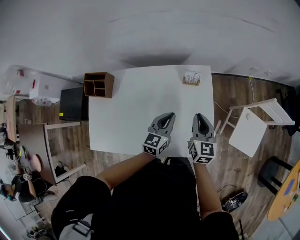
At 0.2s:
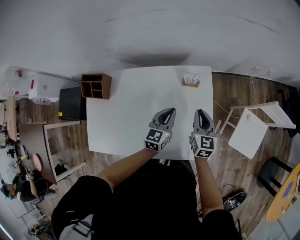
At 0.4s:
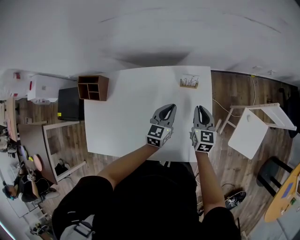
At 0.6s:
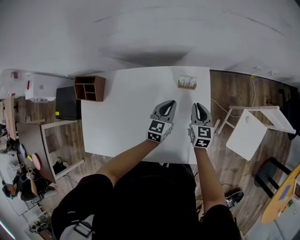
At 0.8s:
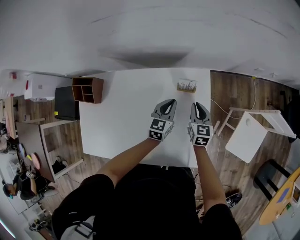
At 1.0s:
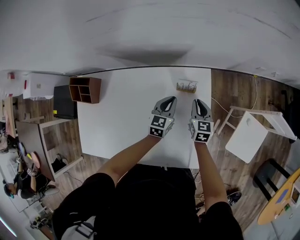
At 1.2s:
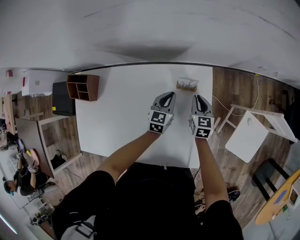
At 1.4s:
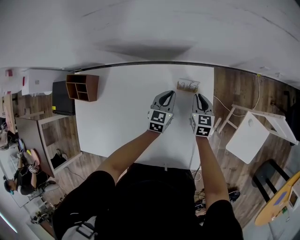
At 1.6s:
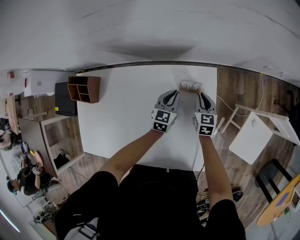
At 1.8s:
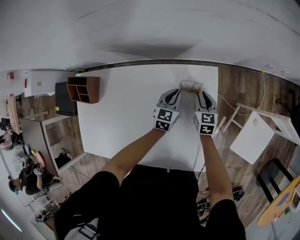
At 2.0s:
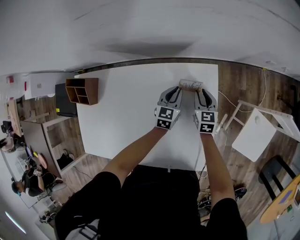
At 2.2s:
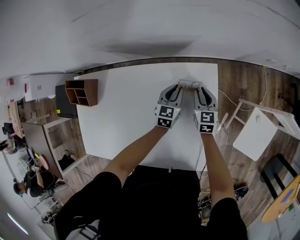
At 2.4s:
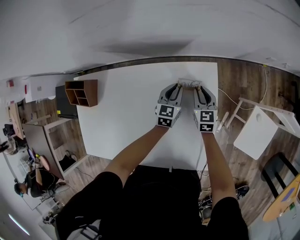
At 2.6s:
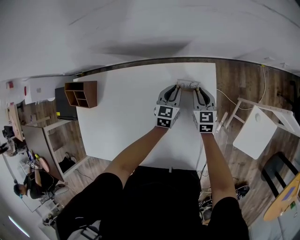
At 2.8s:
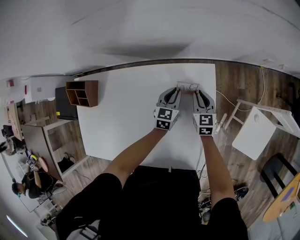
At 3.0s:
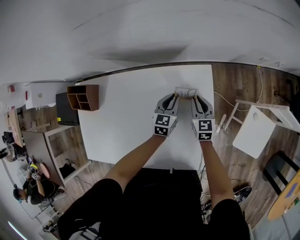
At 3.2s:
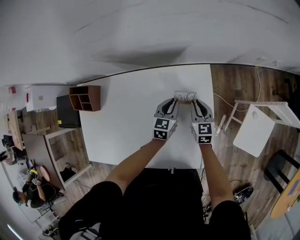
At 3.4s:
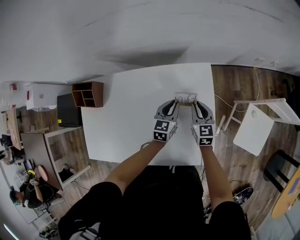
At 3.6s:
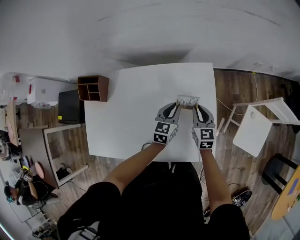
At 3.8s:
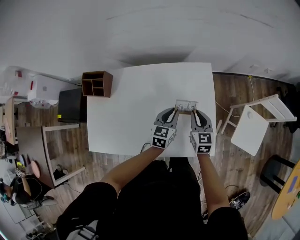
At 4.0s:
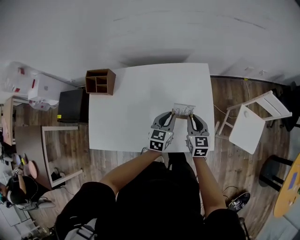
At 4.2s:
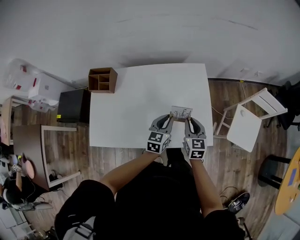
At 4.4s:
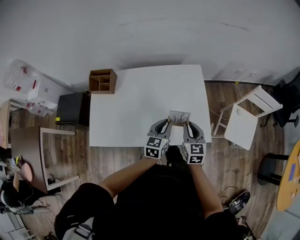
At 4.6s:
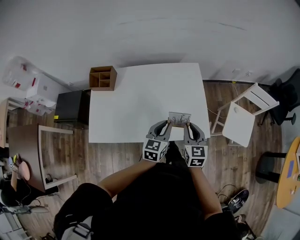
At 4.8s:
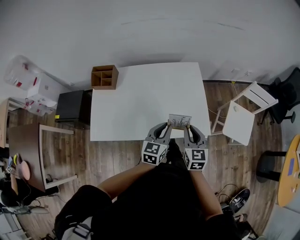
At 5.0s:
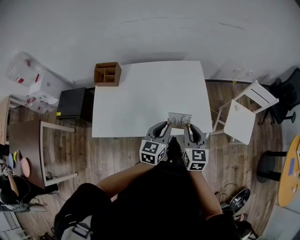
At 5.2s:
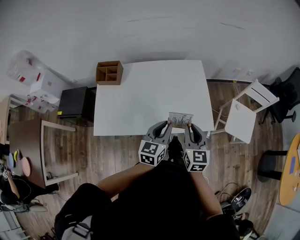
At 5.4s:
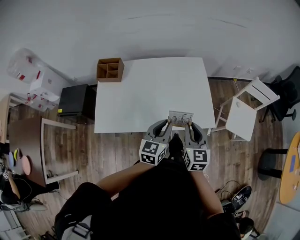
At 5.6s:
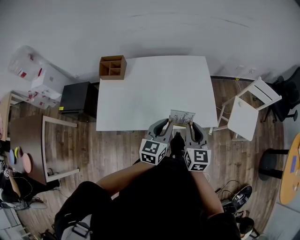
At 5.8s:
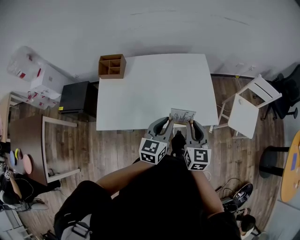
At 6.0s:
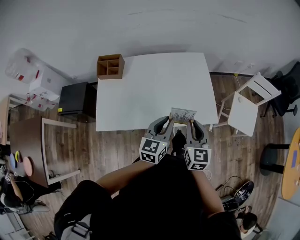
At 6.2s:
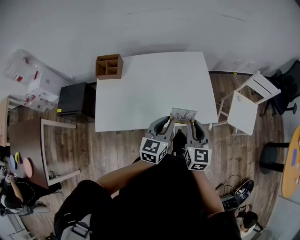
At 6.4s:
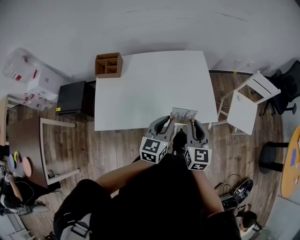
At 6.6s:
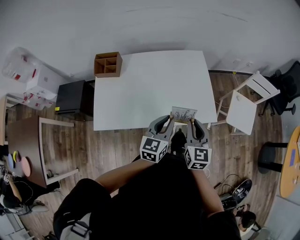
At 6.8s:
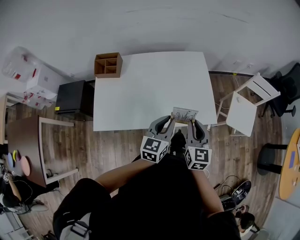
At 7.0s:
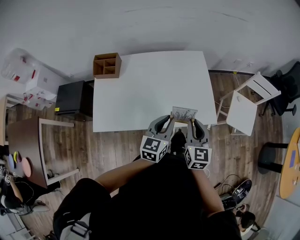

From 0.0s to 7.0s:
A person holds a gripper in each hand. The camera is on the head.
From 0.0s to 1.4s: The right gripper moves downward and forward, some 25 cm. The left gripper moves forward and downward, roughly 25 cm.
From 1.4s to 2.8s: The grippers stay close to where they were, moving slightly.
From 2.8s to 4.2s: Both grippers travel together backward and upward, some 35 cm.
From 4.2s to 5.6s: The two grippers go about 20 cm backward and upward.
From 5.6s to 7.0s: The grippers make only small movements.

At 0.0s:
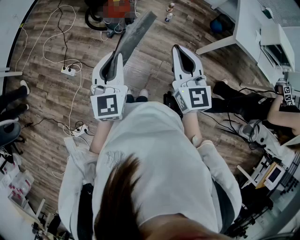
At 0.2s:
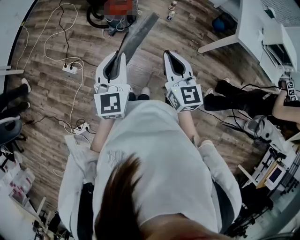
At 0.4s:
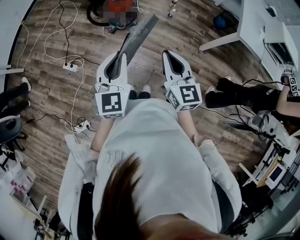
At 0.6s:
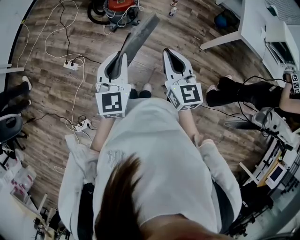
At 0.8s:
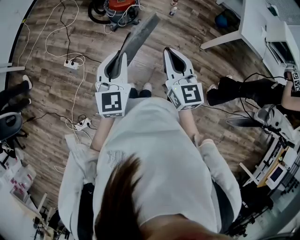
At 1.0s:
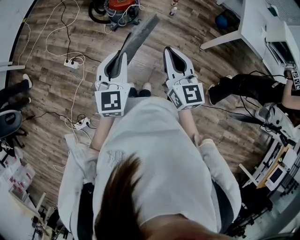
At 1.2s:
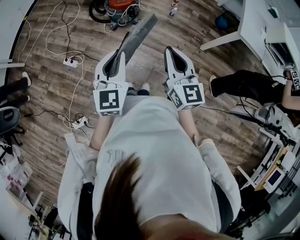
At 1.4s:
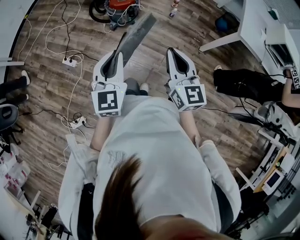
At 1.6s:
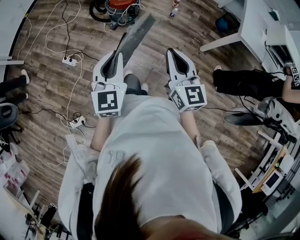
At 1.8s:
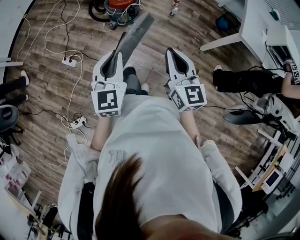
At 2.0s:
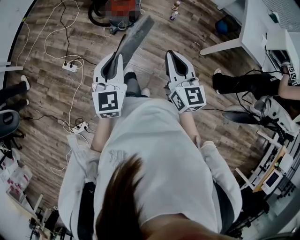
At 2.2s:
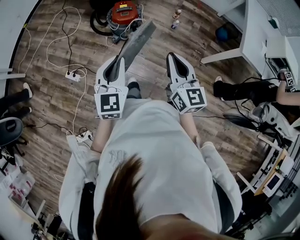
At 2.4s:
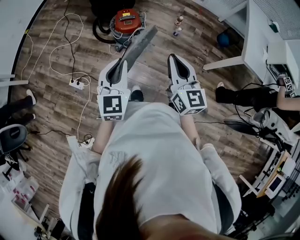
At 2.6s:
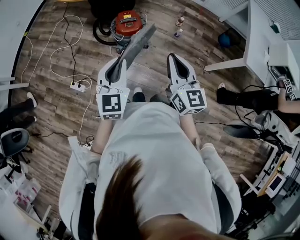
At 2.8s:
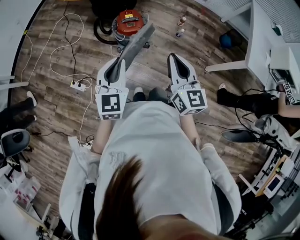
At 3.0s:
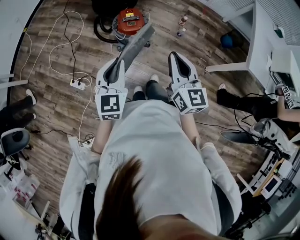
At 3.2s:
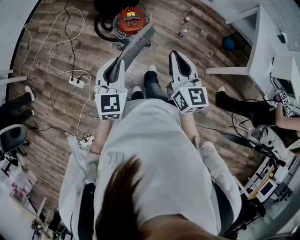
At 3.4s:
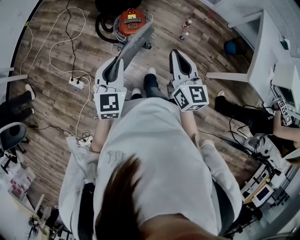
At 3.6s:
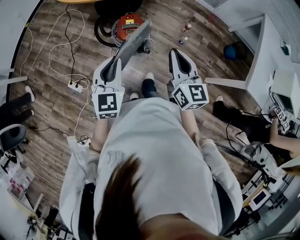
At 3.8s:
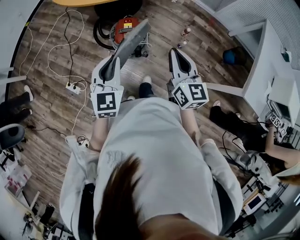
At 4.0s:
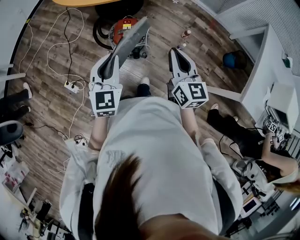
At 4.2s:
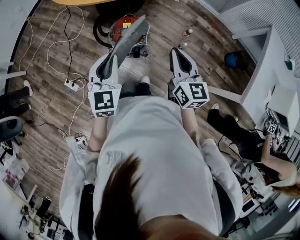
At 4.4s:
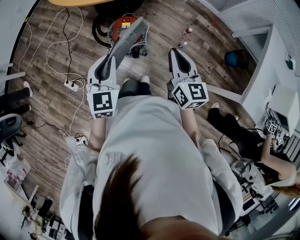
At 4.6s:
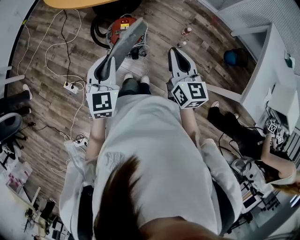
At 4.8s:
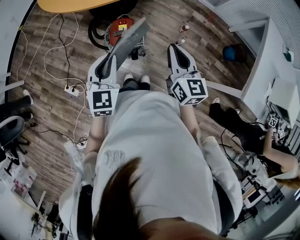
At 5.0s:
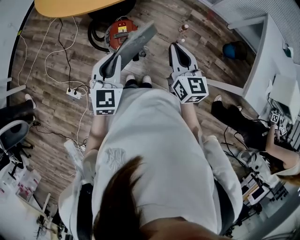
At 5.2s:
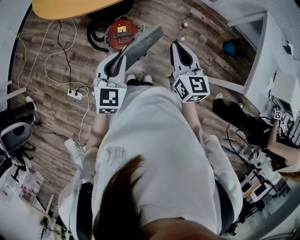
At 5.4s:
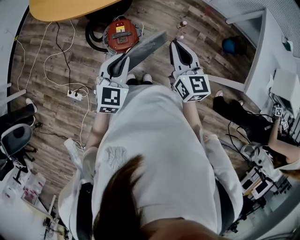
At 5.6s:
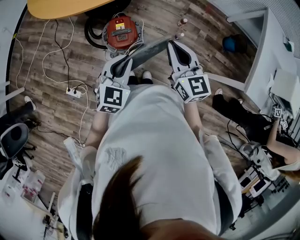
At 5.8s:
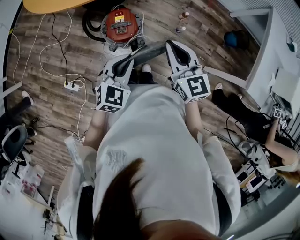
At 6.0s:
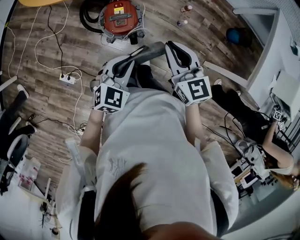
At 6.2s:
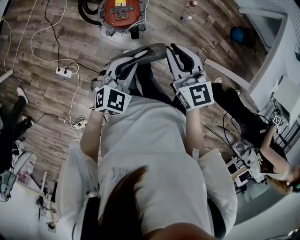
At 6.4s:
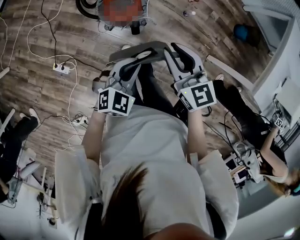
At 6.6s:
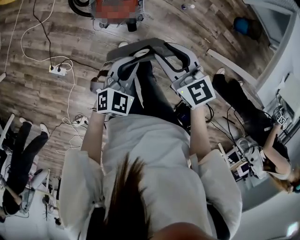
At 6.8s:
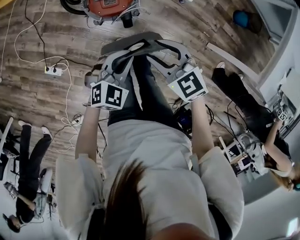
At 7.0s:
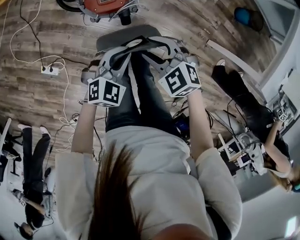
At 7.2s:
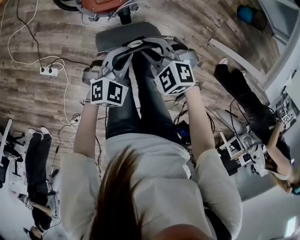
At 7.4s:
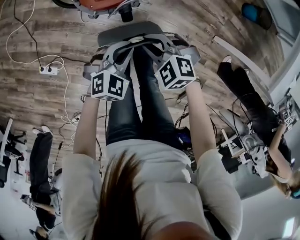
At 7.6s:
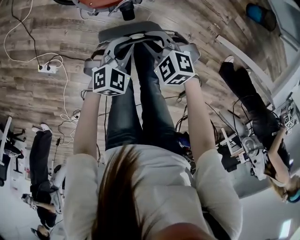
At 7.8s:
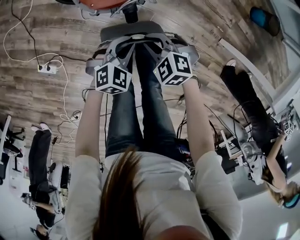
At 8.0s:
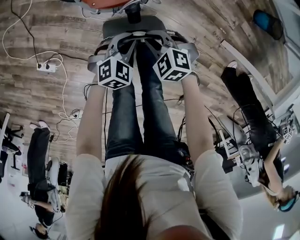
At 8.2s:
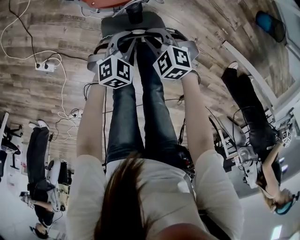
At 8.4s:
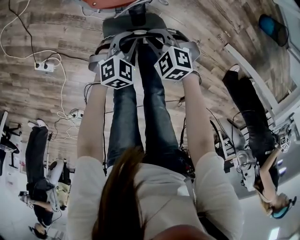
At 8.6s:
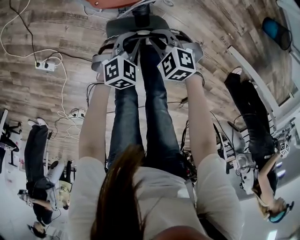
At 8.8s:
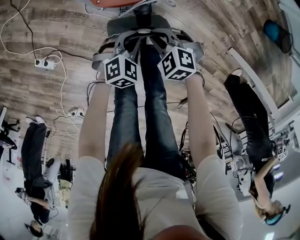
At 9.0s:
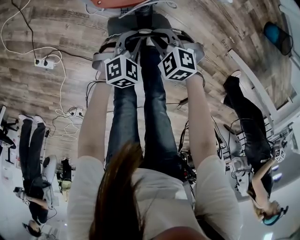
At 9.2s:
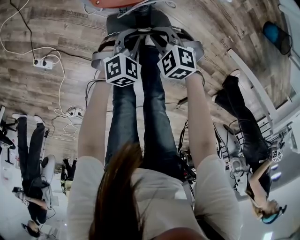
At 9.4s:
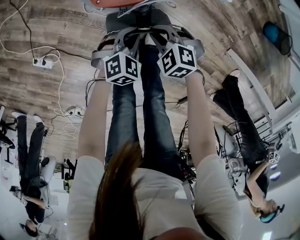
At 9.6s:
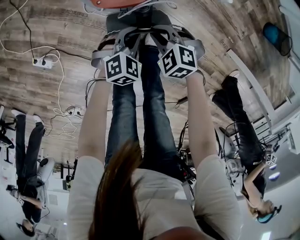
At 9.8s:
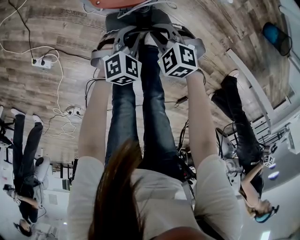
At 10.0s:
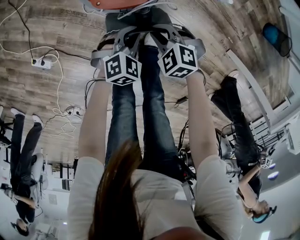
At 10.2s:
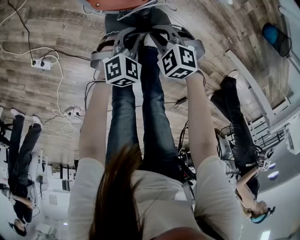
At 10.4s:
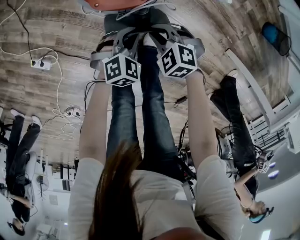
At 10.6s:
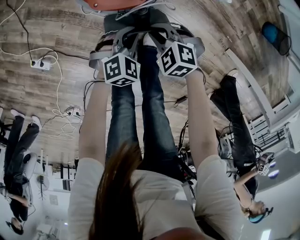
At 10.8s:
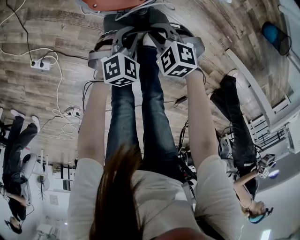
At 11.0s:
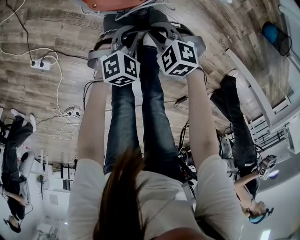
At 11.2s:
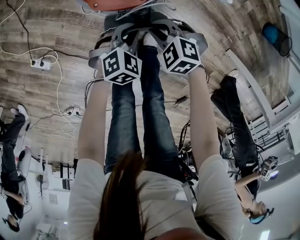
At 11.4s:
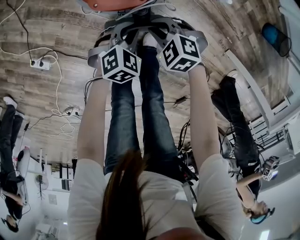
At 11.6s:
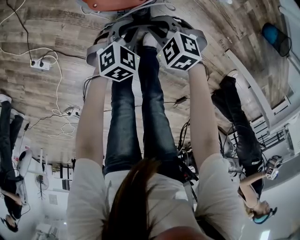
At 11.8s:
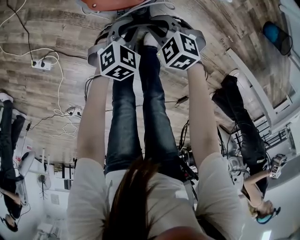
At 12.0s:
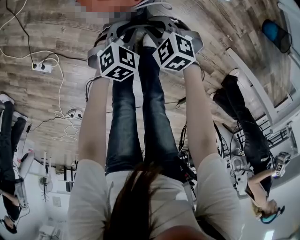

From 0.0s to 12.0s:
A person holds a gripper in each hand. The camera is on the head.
From 0.0s to 1.6s: The right gripper moves downward, approximately 5 cm. Meanwhile the left gripper ends up about 5 cm from where it was.
From 1.6s to 3.0s: Both grippers move forward, roughly 25 cm.
From 3.0s to 4.4s: The right gripper heads forward and to the right, covering about 25 cm, while the left gripper travels forward by about 20 cm.
From 4.4s to 6.0s: The left gripper shifts some 10 cm downward and to the right, and turns by roughly 40 degrees. Meanwhile the right gripper changes place by roughly 5 cm.
From 6.0s to 7.6s: The grippers both shift downward by approximately 35 cm. The right gripper tilts its fingers some 40 degrees downward, and opens, then closes once more.
From 7.6s to 9.0s: The two grippers go roughly 15 cm downward.
From 9.0s to 12.0s: The grippers stay close to where they were, moving slightly.

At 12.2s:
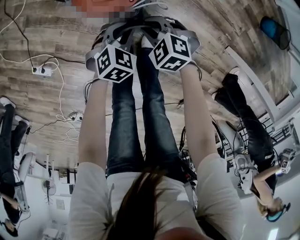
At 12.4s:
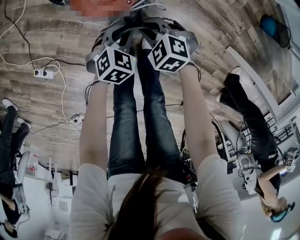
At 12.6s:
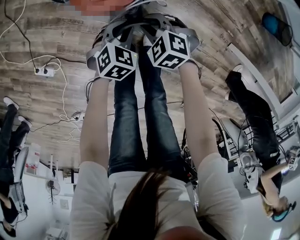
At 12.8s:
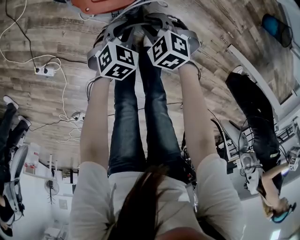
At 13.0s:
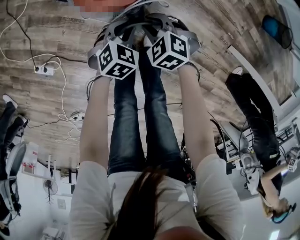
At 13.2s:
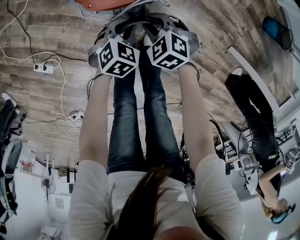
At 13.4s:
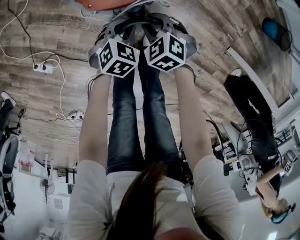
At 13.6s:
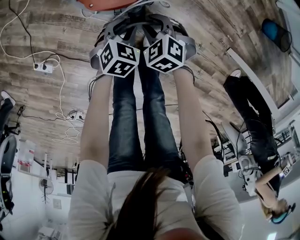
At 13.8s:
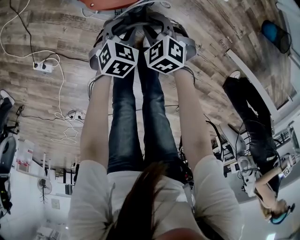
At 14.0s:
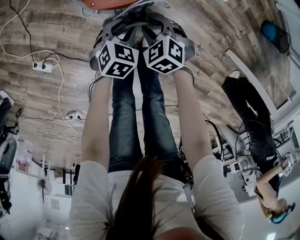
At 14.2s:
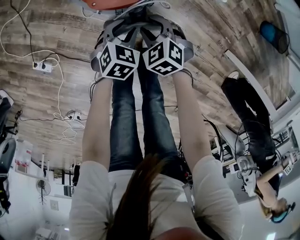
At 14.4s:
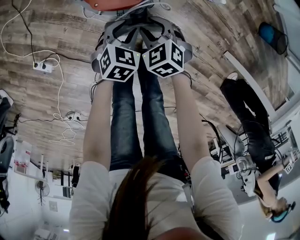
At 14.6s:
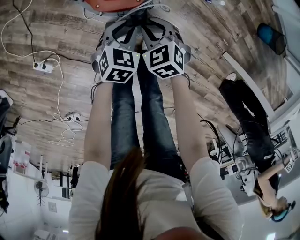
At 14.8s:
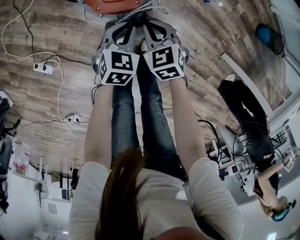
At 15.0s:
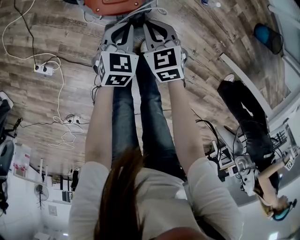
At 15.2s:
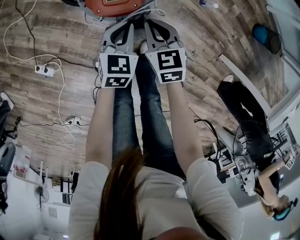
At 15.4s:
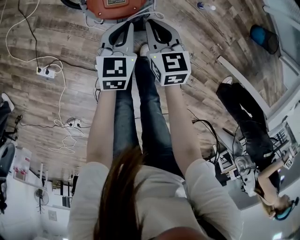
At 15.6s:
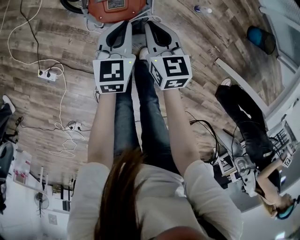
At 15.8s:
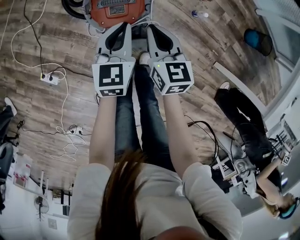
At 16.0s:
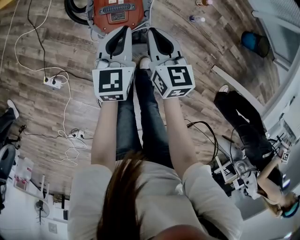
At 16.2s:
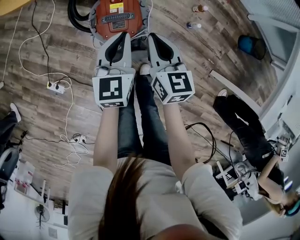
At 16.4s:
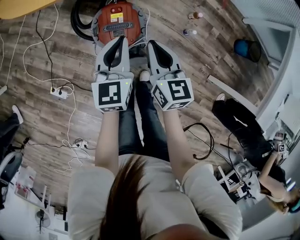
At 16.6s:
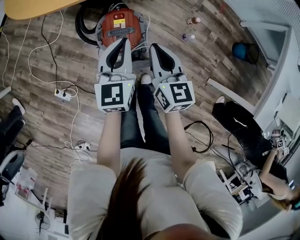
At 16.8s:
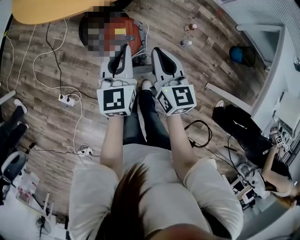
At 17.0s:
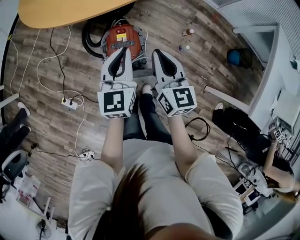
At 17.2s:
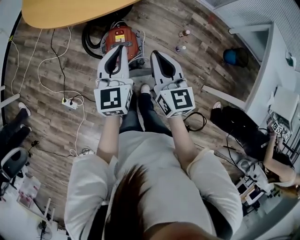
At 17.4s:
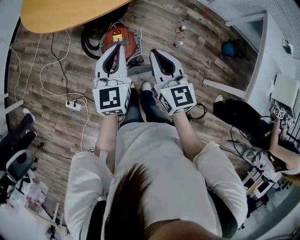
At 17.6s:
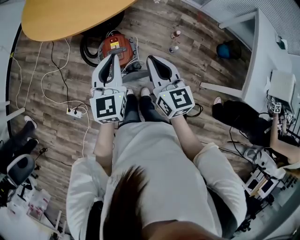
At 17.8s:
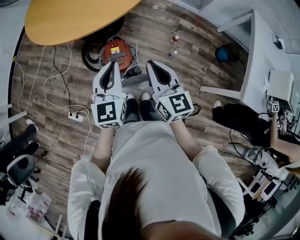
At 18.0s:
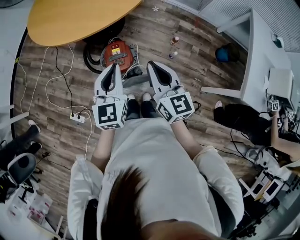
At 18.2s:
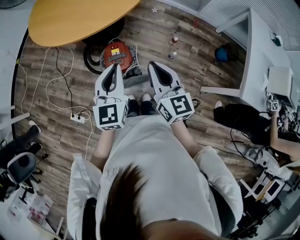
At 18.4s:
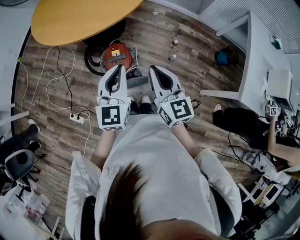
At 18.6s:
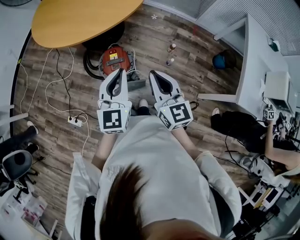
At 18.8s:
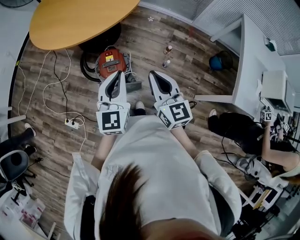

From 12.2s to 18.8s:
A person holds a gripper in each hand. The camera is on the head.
From 12.2s to 13.8s: The grippers make only small movements.
From 13.8s to 15.4s: The grippers both shift upward and forward by about 15 cm. The left gripper swivels some 30 degrees, and closes. The right gripper turns by roughly 50 degrees, and closes up.
From 15.4s to 17.2s: The grippers both shift upward by about 40 cm. The right gripper swivels approximately 30 degrees. Meanwhile the left gripper swivels about 30 degrees.
From 17.2s to 18.8s: Both grippers move backward, upward and to the right, roughly 20 cm.
